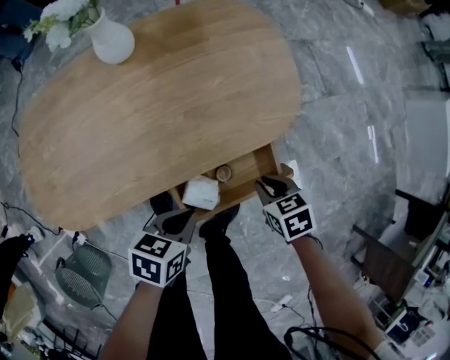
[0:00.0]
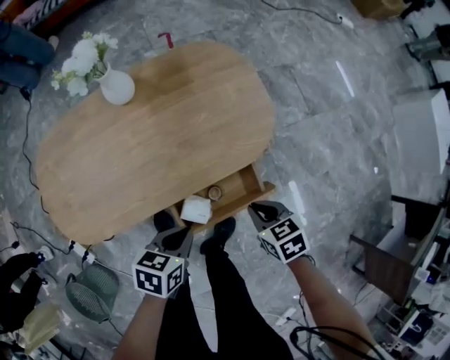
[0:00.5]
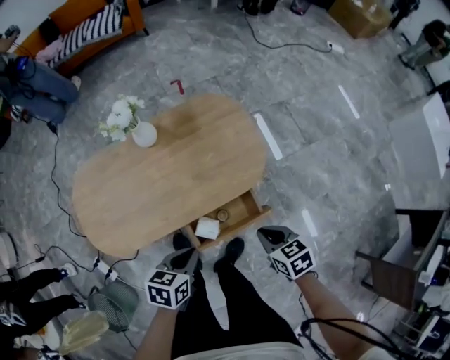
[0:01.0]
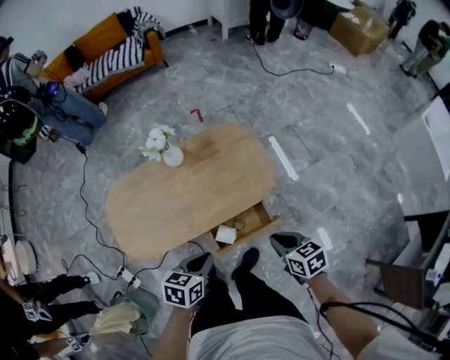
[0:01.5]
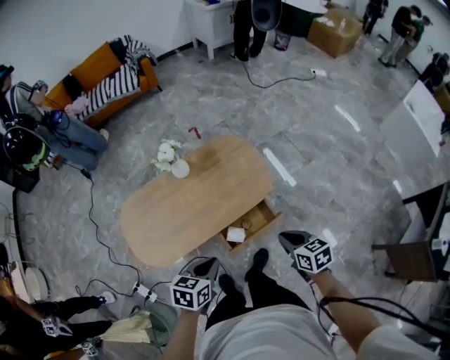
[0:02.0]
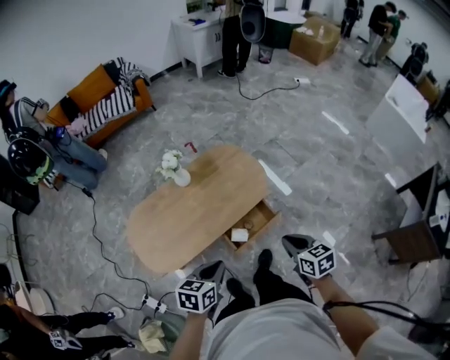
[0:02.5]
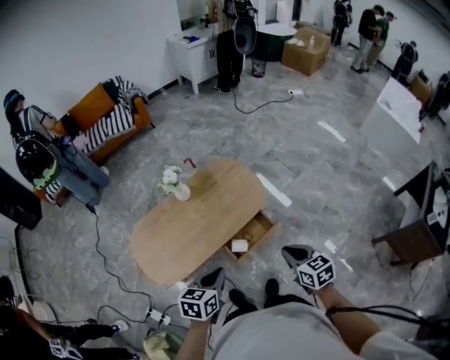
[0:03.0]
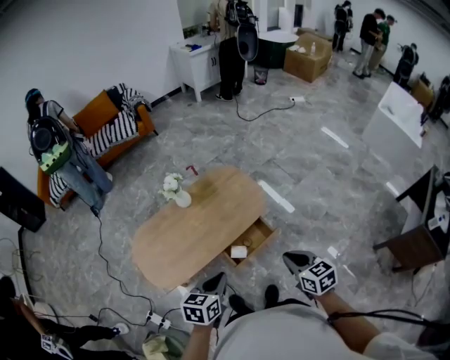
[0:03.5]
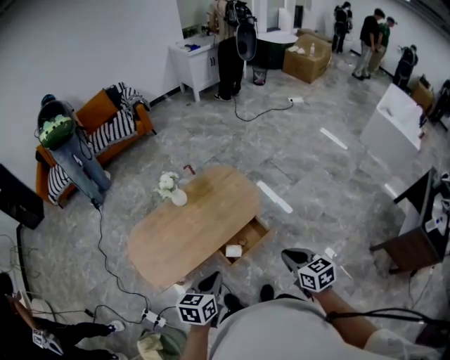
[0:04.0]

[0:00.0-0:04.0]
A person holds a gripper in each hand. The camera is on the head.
0:00.0 to 0:02.0: The grippers both shift upward by some 35 cm. The right gripper changes its angle by about 30 degrees.
0:02.0 to 0:04.0: The grippers both shift upward and backward by approximately 10 cm.

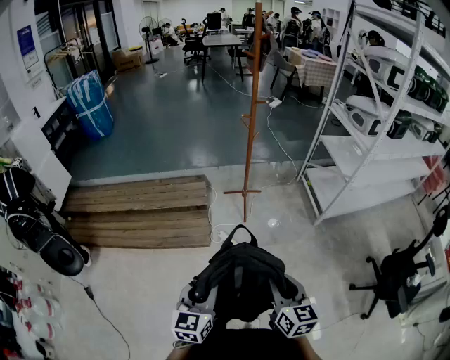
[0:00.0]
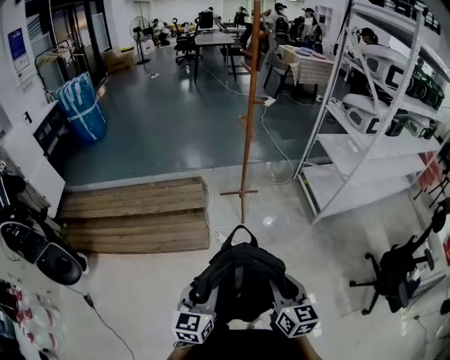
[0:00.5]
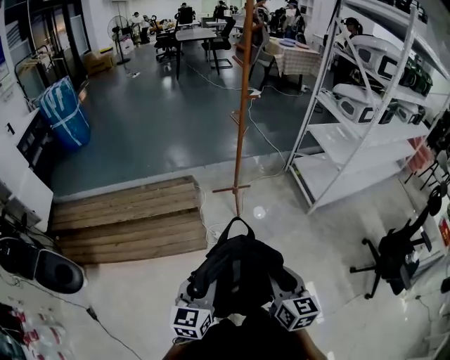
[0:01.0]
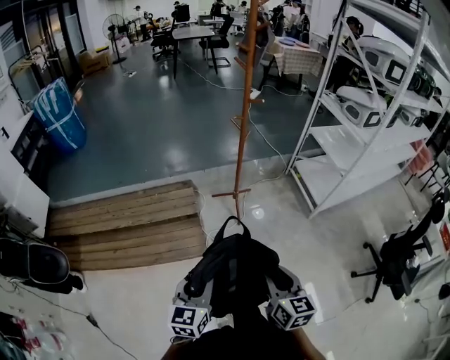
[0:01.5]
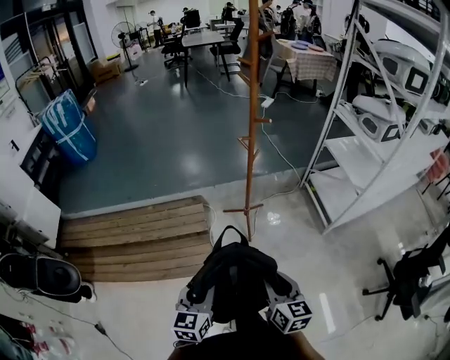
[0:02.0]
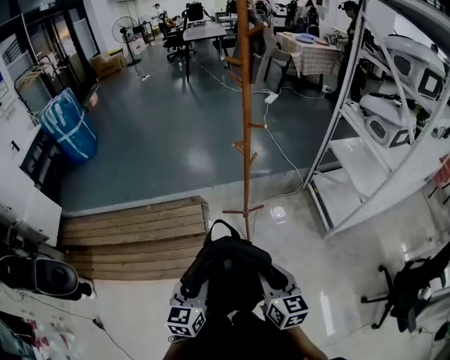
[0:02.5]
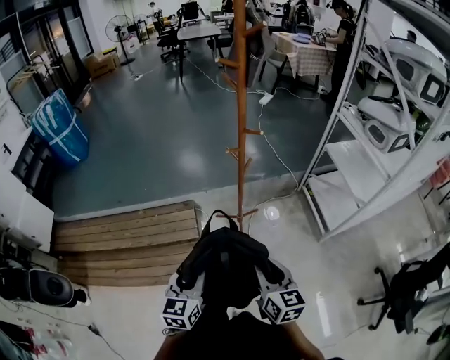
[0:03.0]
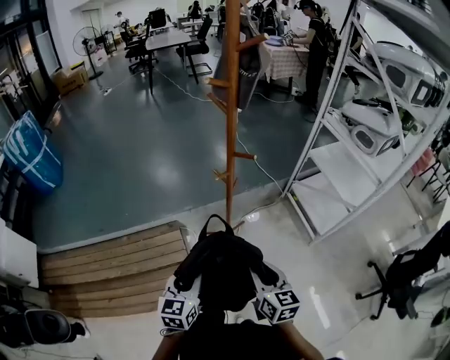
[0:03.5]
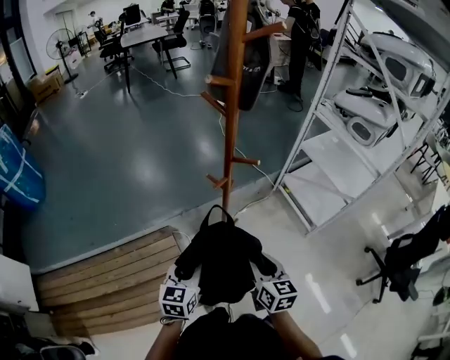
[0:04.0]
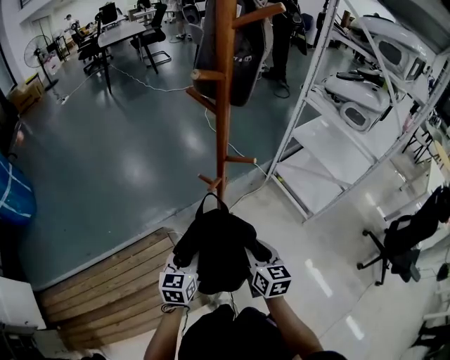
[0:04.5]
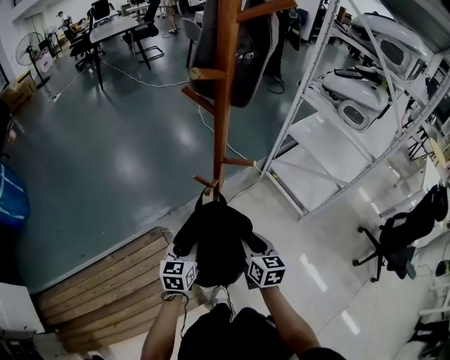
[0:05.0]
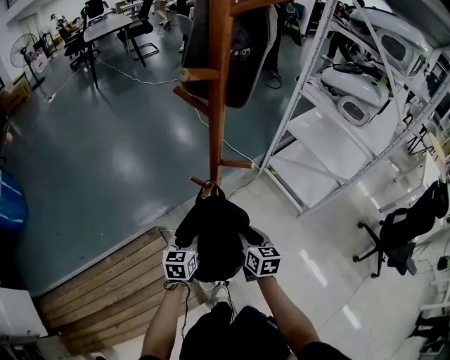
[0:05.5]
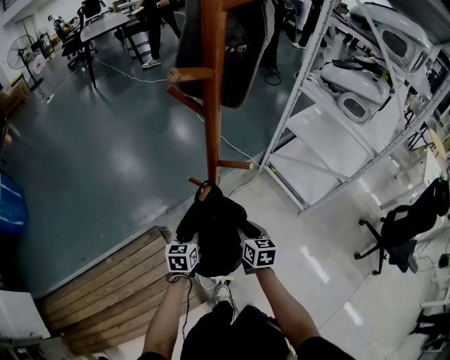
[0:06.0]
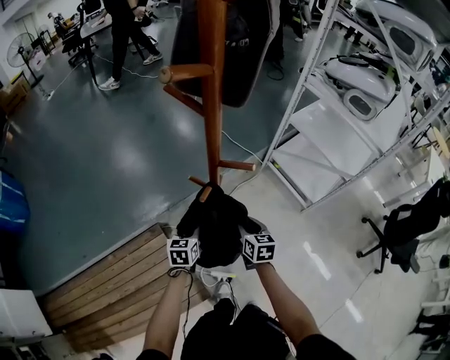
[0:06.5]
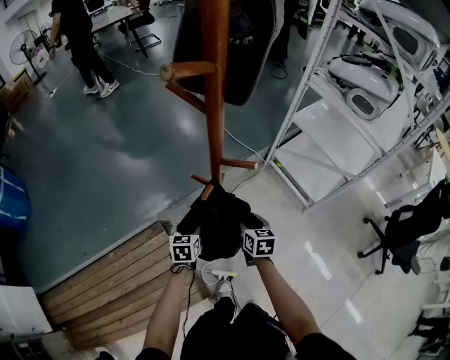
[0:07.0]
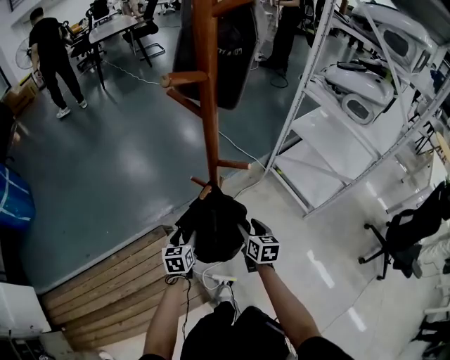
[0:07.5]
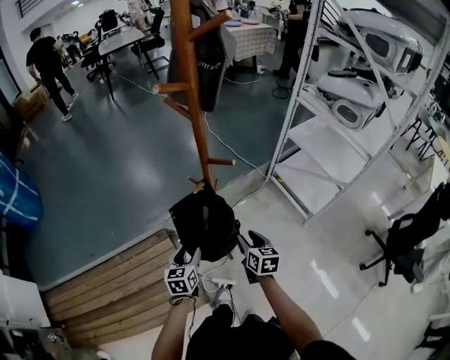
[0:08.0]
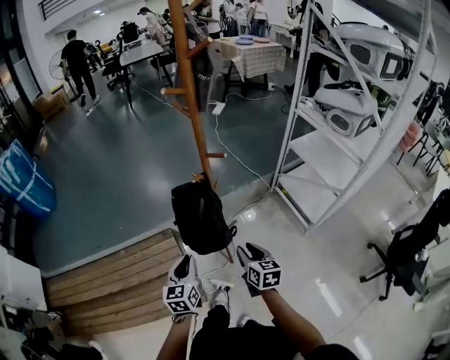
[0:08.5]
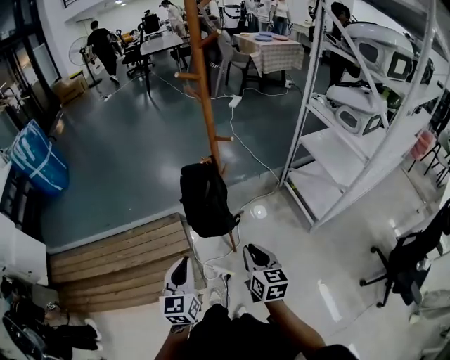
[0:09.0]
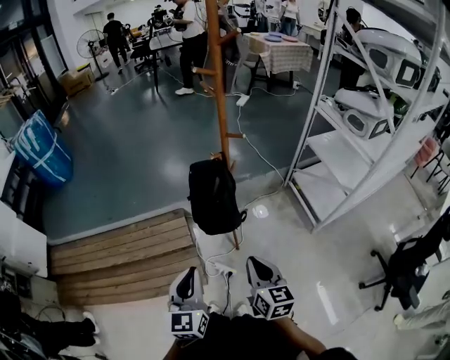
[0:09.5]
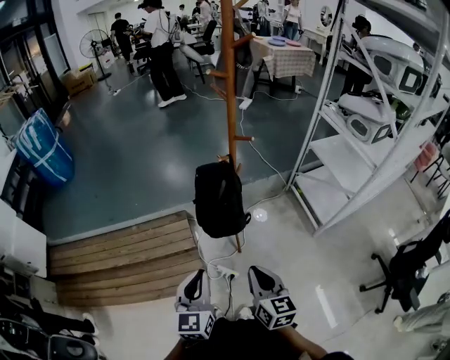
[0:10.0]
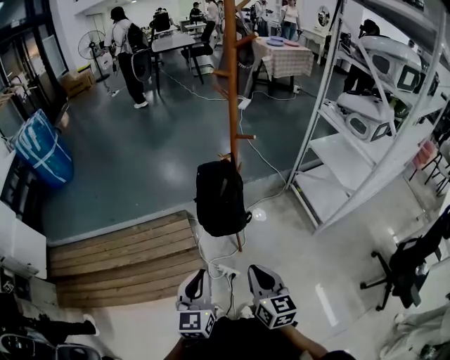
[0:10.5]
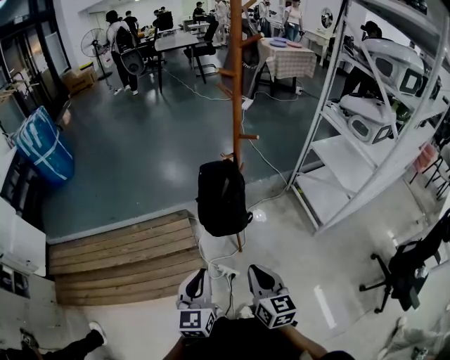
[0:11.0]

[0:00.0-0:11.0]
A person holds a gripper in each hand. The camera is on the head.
0:00.0 to 0:02.0: Both grippers move forward, approximately 25 cm.
0:02.0 to 0:03.5: Both grippers travel together forward, some 30 cm.
0:03.5 to 0:05.5: The two grippers go some 30 cm forward and downward.
0:05.5 to 0:07.5: The right gripper opens its fingers. Meanwhile the left gripper opens up.
0:07.5 to 0:09.0: The grippers both shift backward and upward by some 40 cm. The right gripper closes its fingers; the left gripper changes its angle by approximately 30 degrees, and closes its fingers.
0:09.0 to 0:11.0: The right gripper heads backward and to the left, covering some 10 cm, while the left gripper heads backward, covering roughly 5 cm.

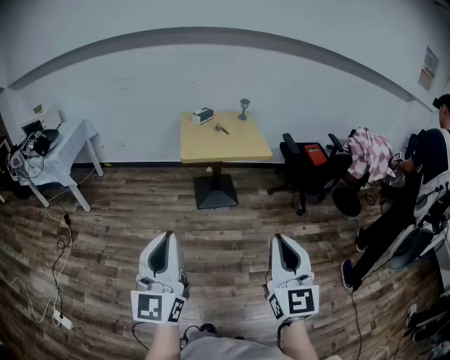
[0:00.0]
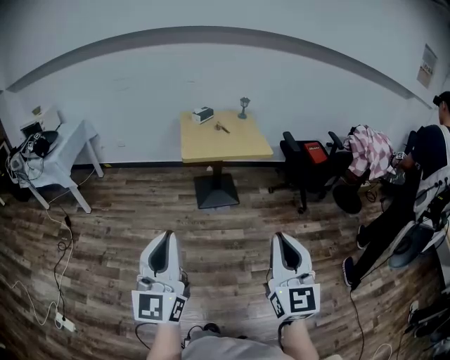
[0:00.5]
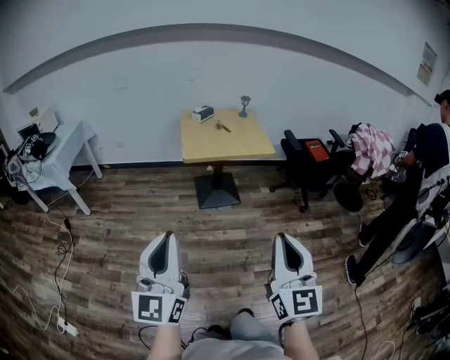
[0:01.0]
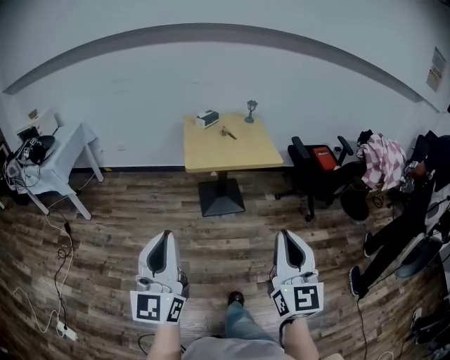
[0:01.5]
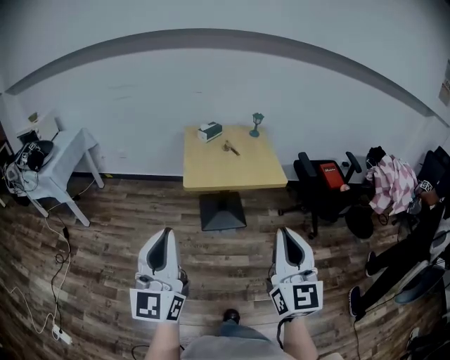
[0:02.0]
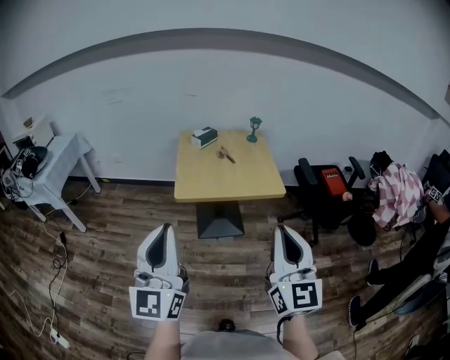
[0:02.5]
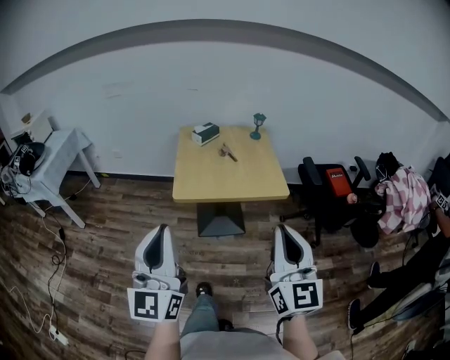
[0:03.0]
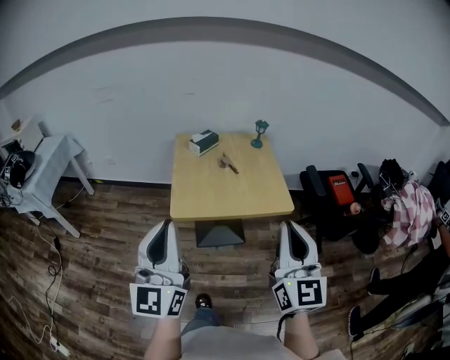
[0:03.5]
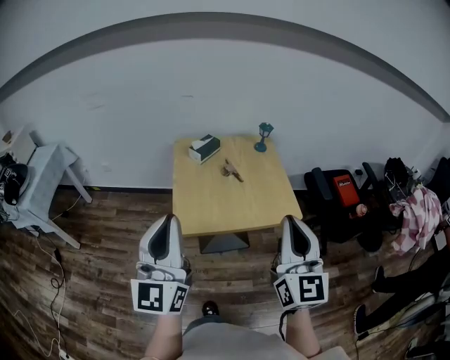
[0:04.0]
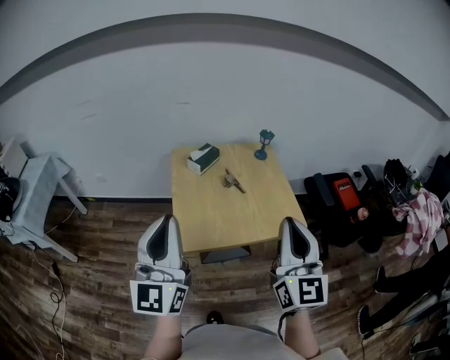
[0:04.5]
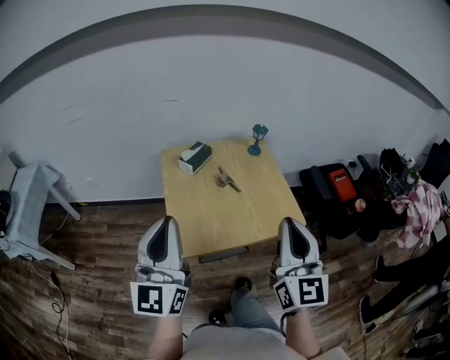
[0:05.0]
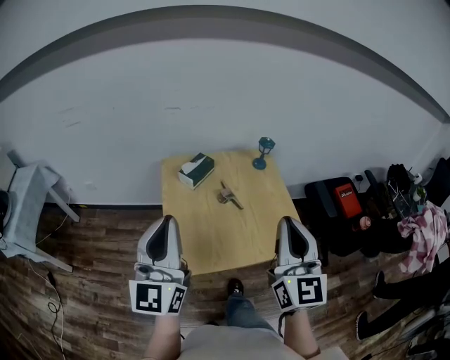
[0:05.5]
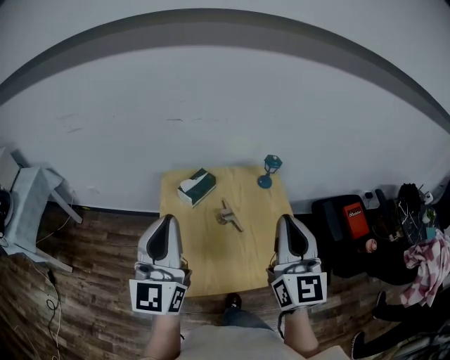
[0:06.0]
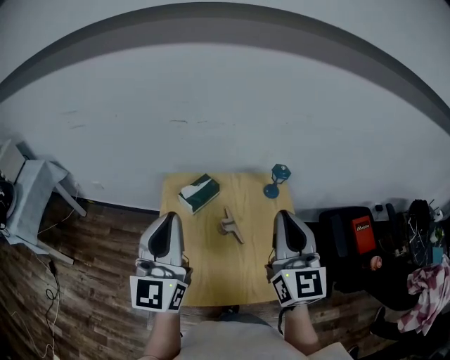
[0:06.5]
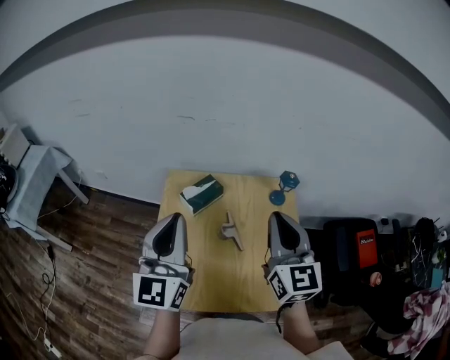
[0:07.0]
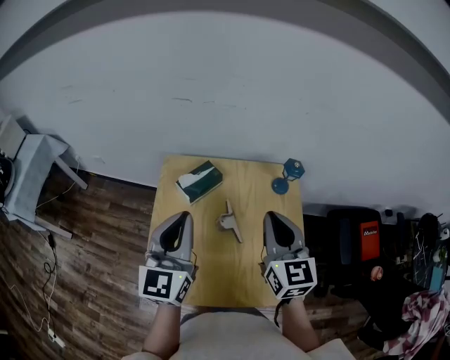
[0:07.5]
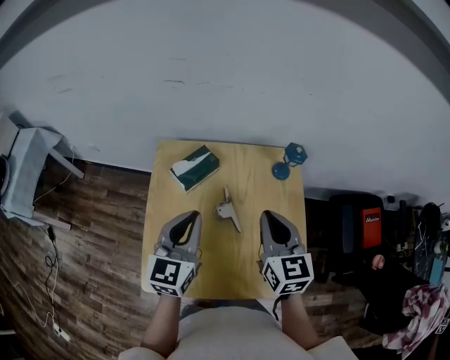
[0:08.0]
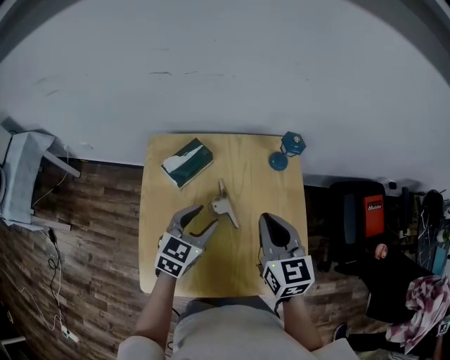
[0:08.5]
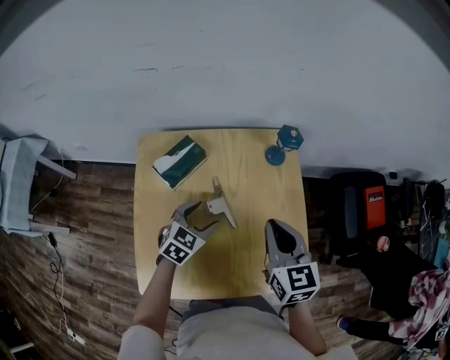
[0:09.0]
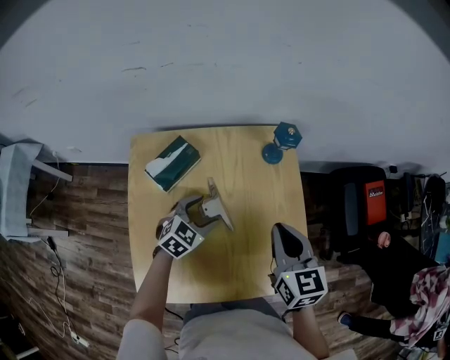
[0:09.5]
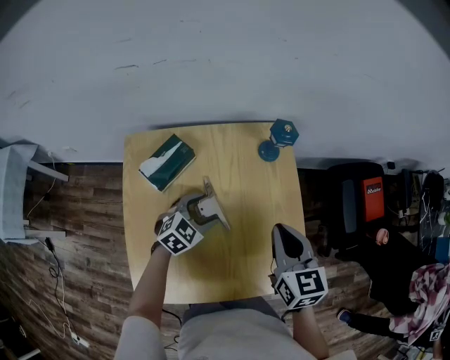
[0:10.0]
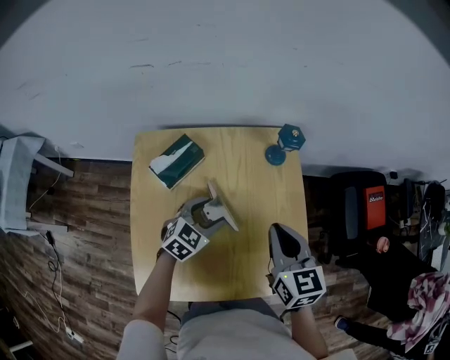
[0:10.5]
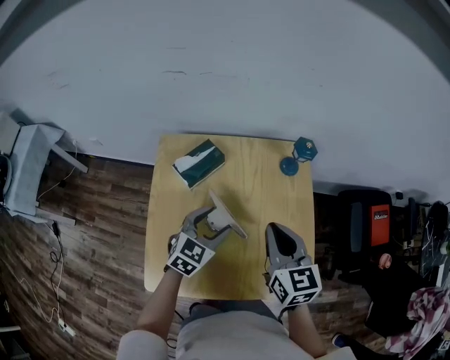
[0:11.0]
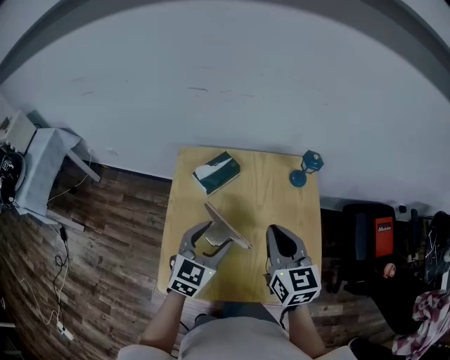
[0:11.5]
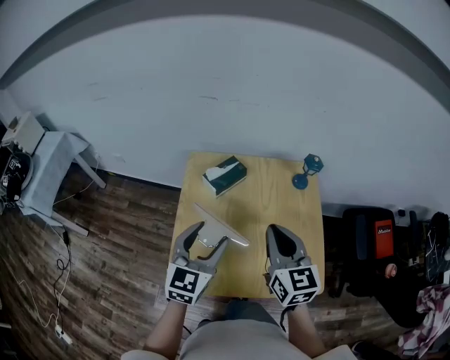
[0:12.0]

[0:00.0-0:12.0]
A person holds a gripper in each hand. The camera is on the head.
0:00.0 to 0:02.0: Both grippers travel together forward, roughly 25 cm.
0:02.0 to 0:04.0: Both grippers travel together forward, about 35 cm.
0:04.0 to 0:06.0: The grippers both shift forward by some 30 cm.
0:06.0 to 0:08.0: The left gripper heads downward, forward and to the right, covering approximately 25 cm, and turns by some 30 degrees. The right gripper travels downward and forward by approximately 25 cm, and swivels about 30 degrees.
0:08.0 to 0:10.0: The right gripper goes some 10 cm to the right and downward, while the left gripper moves downward, roughly 25 cm, tips its fingers downward by some 30 degrees, and opens.
0:10.0 to 0:12.0: The right gripper shifts roughly 20 cm to the left, upward and backward. The left gripper is displaced upward, backward and to the left by about 30 cm, and changes its angle by about 50 degrees.
